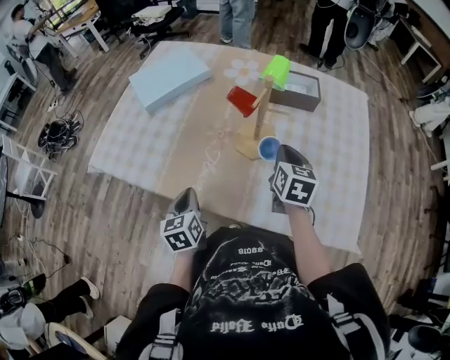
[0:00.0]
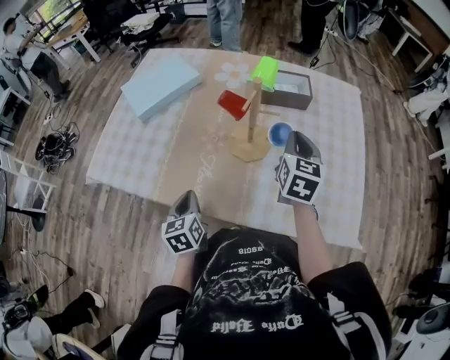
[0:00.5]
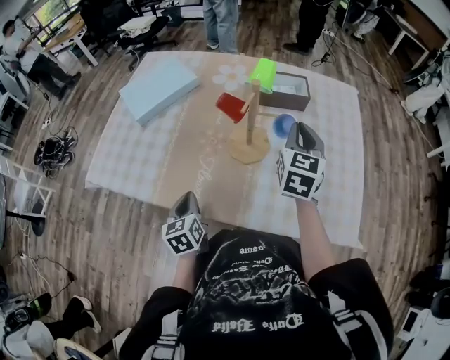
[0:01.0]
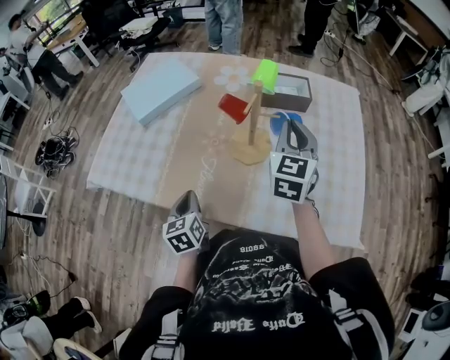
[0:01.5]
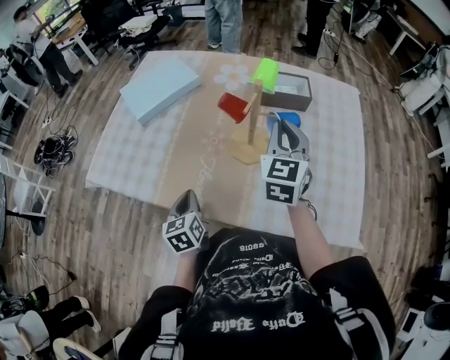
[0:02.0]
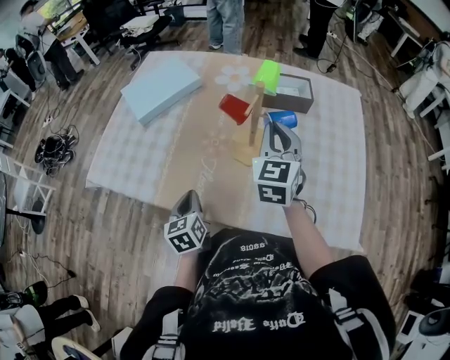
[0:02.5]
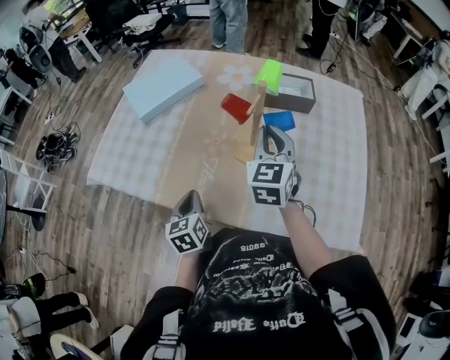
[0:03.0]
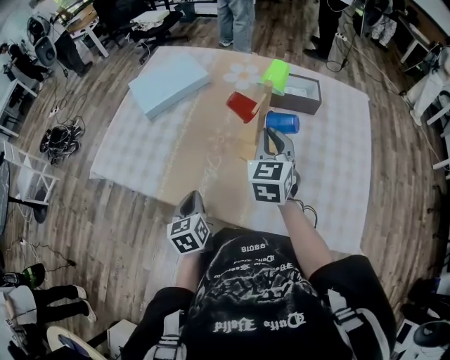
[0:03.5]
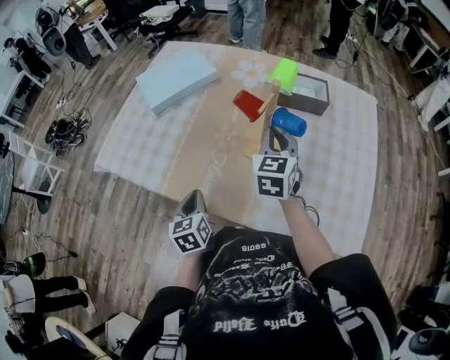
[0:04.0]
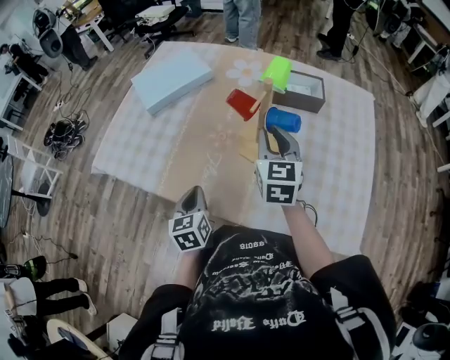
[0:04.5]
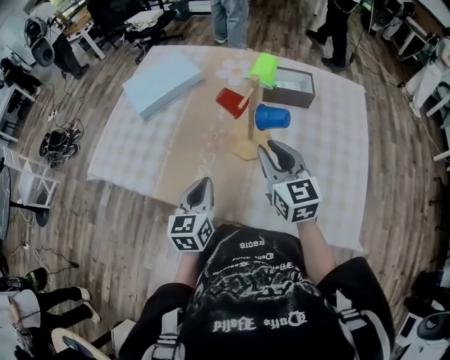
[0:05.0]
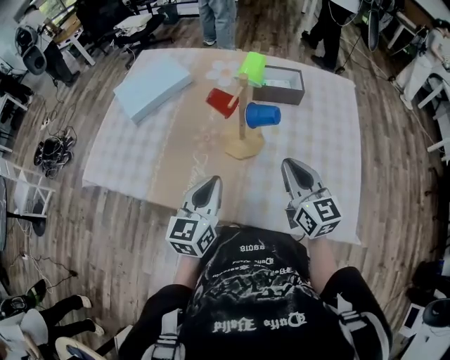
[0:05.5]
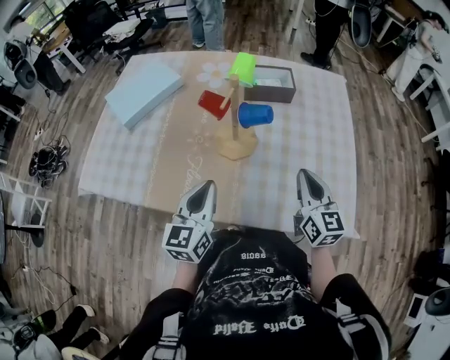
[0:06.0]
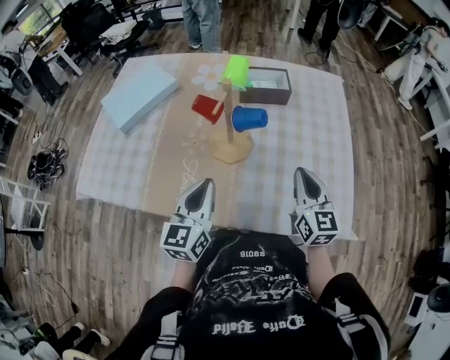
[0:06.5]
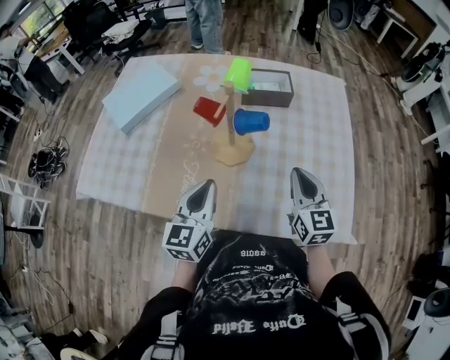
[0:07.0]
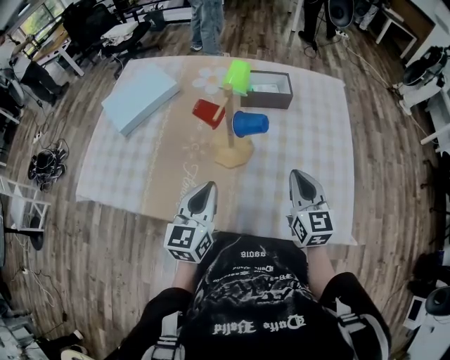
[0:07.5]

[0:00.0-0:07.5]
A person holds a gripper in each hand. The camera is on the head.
0:00.0 to 0:02.0: The right gripper goes roughly 10 cm upward, and swivels some 30 degrees.
0:02.0 to 0:04.0: The right gripper moves downward, approximately 5 cm.
0:04.0 to 0:05.5: The left gripper heads to the right and upward, covering roughly 15 cm, and turns by some 40 degrees; the right gripper moves backward and to the right, about 15 cm, and changes its angle by roughly 30 degrees.
0:05.5 to 0:07.5: The right gripper goes approximately 5 cm to the right.

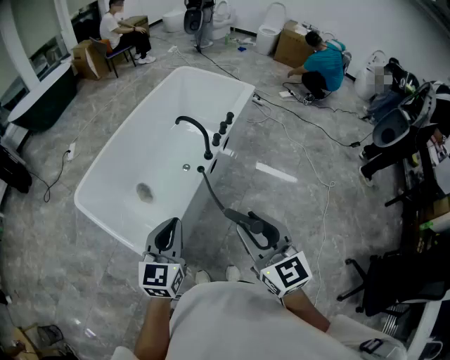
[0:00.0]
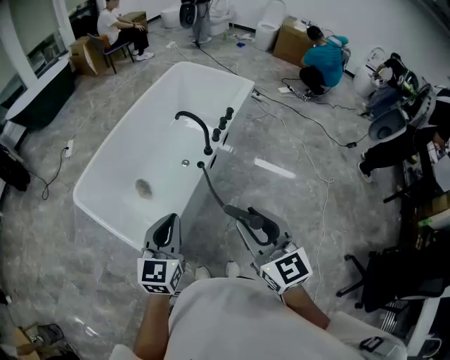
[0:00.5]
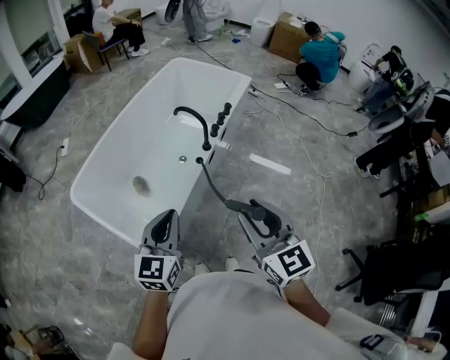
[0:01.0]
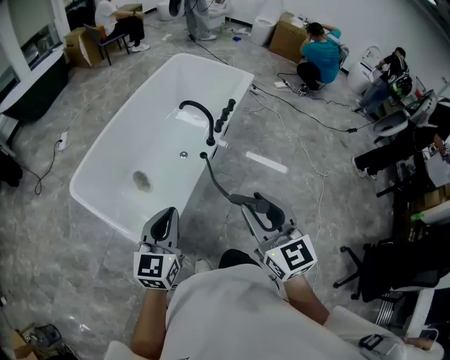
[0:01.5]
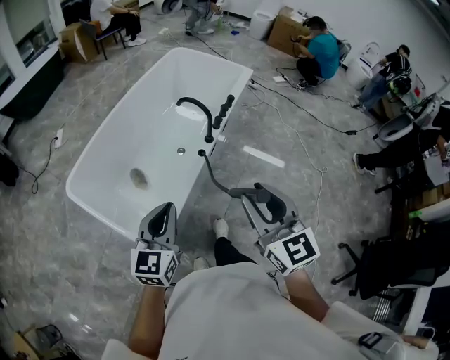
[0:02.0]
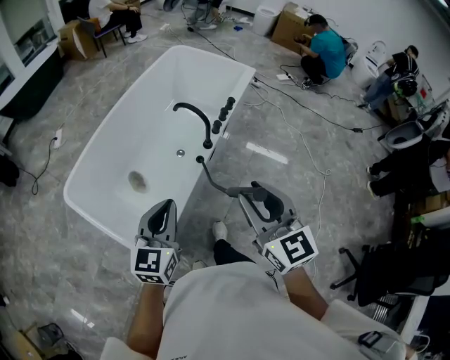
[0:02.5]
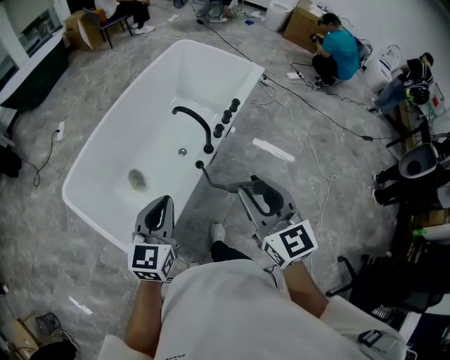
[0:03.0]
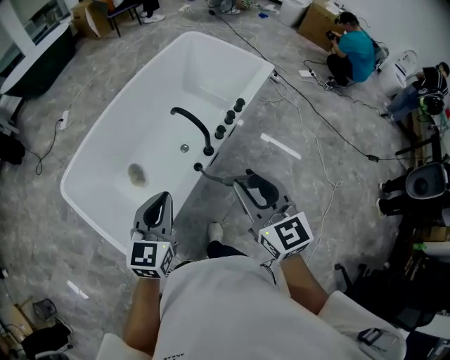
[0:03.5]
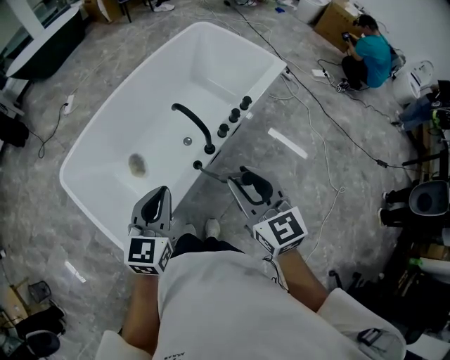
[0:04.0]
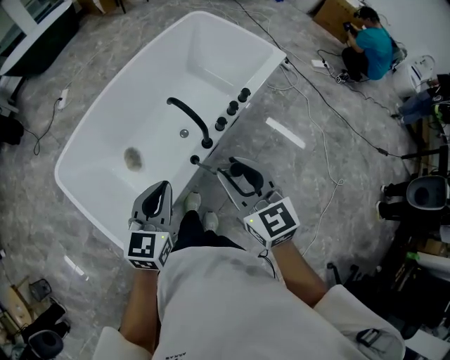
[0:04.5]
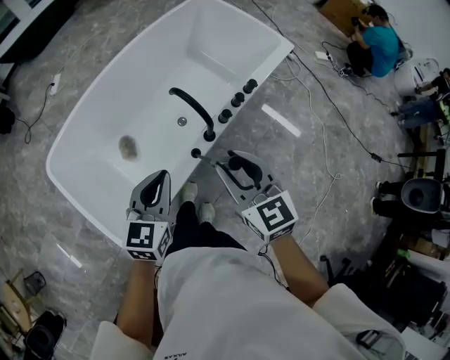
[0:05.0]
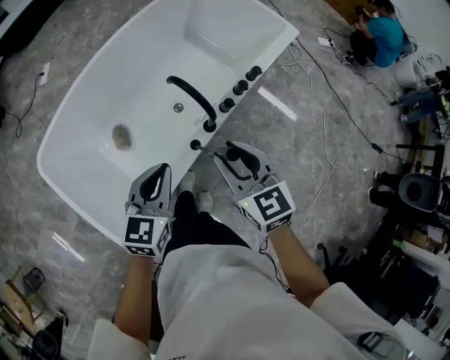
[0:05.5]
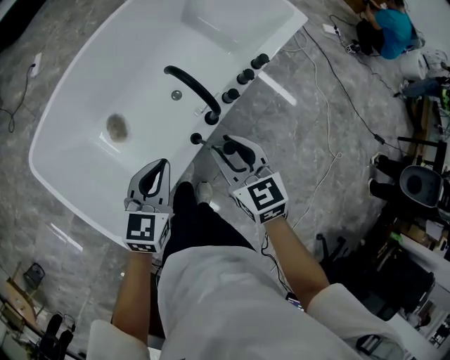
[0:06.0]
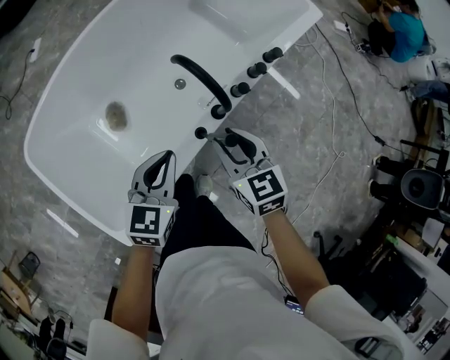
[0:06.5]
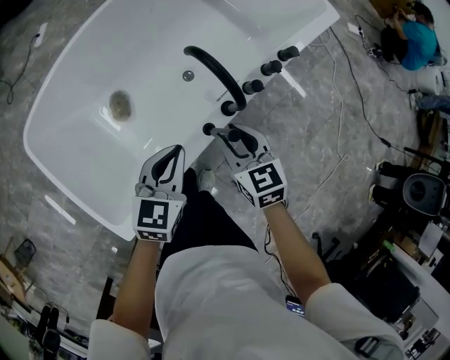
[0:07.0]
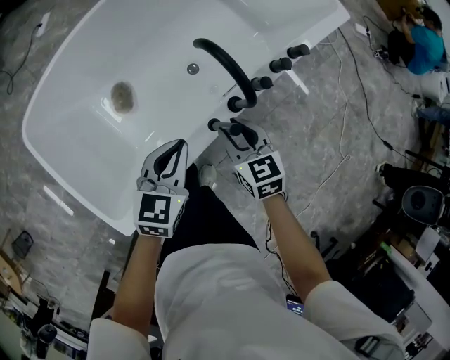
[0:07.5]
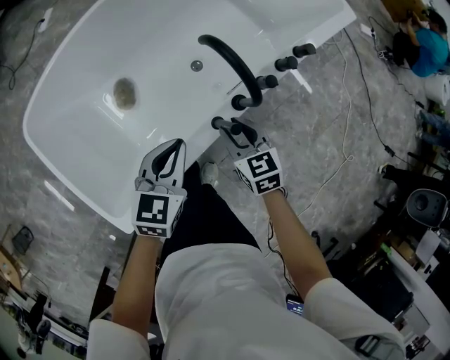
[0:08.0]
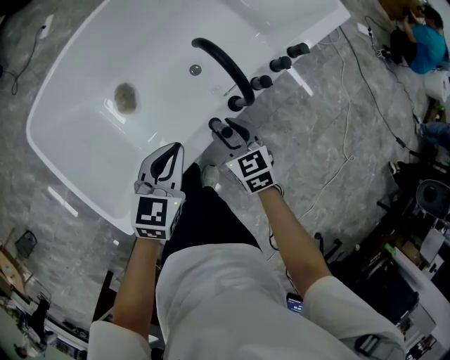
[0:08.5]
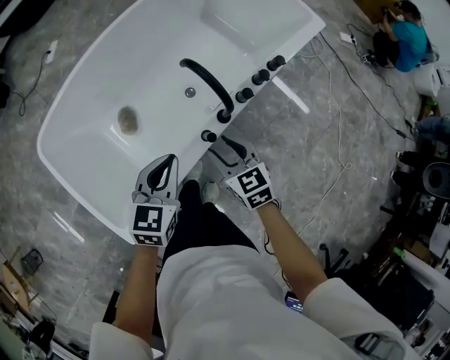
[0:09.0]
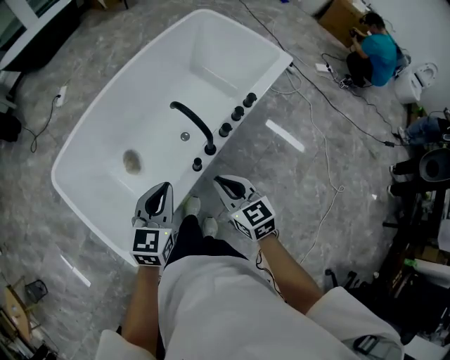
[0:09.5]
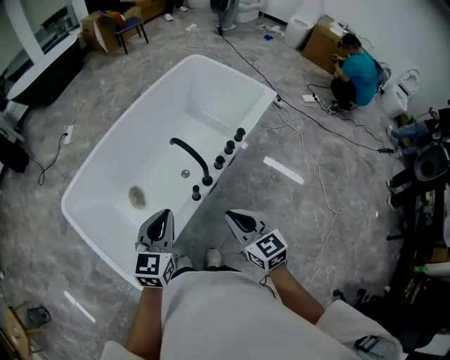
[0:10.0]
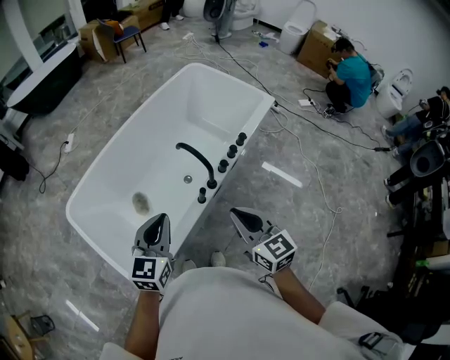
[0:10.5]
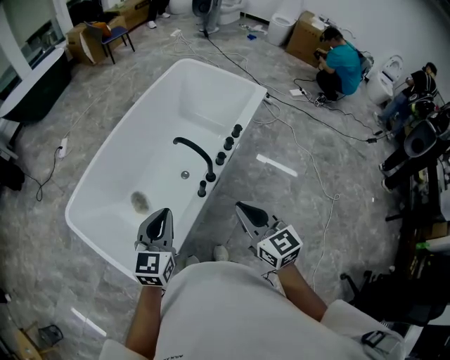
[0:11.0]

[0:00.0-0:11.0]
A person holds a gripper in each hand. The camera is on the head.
0:00.0 to 0:02.0: The right gripper ends up about 5 cm from where it was; the left gripper moves to the left, approximately 5 cm.
0:02.0 to 0:03.5: The grippers both shift forward and to the right by about 20 cm.
0:03.5 to 0:05.5: The right gripper shifts approximately 20 cm downward and forward; the left gripper is displaced forward and downward by about 15 cm.
0:05.5 to 0:07.5: The left gripper moves downward, roughly 15 cm. Meanwhile the right gripper is displaced downward by about 20 cm.
0:07.5 to 0:09.0: The right gripper changes place by some 5 cm. The left gripper goes roughly 5 cm upward.
0:09.0 to 0:11.0: The right gripper travels upward and backward by approximately 30 cm, turns by roughly 30 degrees, and closes, while the left gripper heads upward and backward, covering some 20 cm.

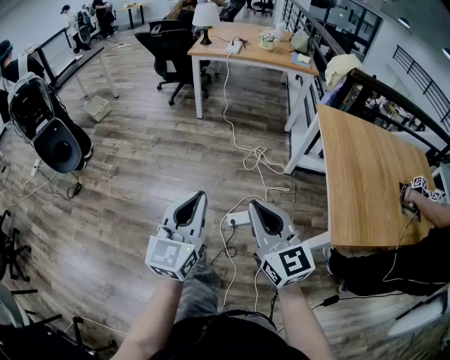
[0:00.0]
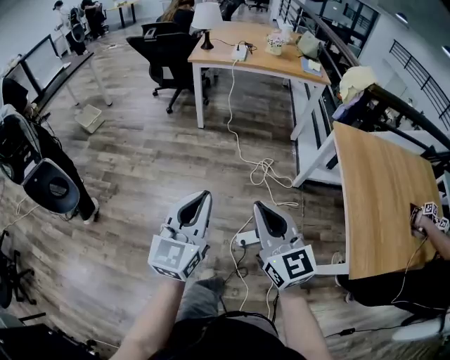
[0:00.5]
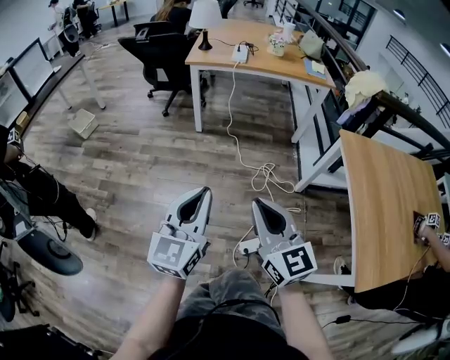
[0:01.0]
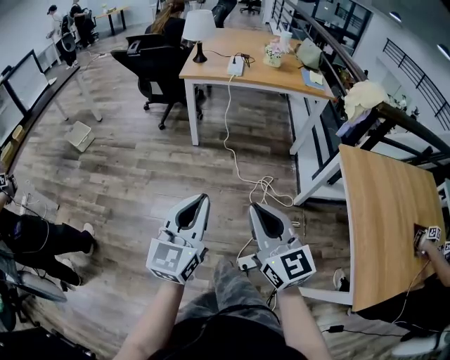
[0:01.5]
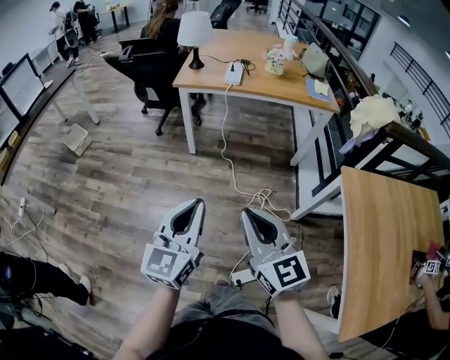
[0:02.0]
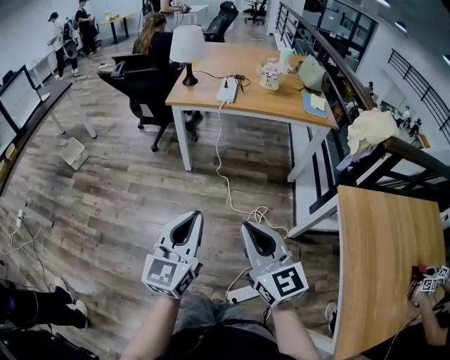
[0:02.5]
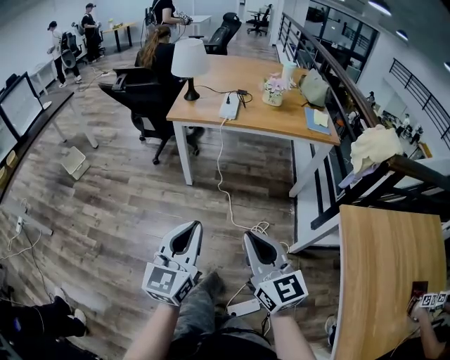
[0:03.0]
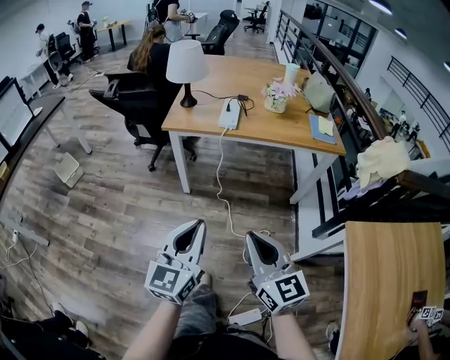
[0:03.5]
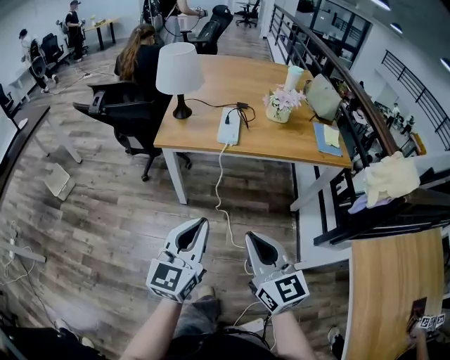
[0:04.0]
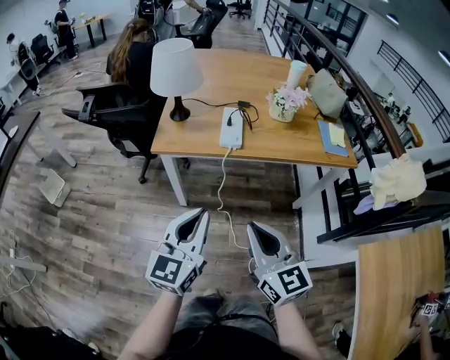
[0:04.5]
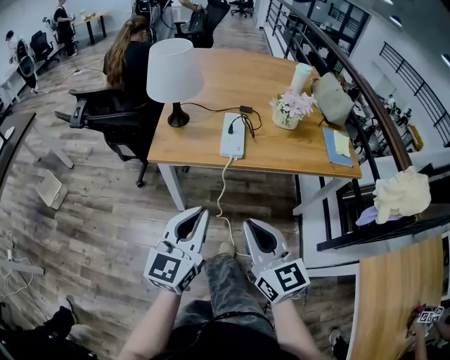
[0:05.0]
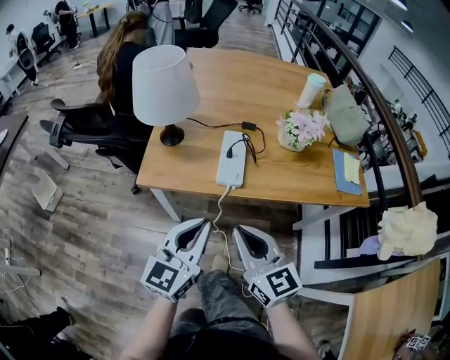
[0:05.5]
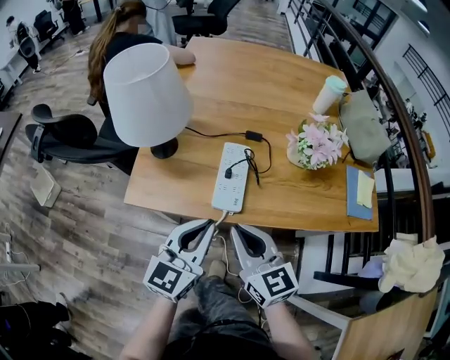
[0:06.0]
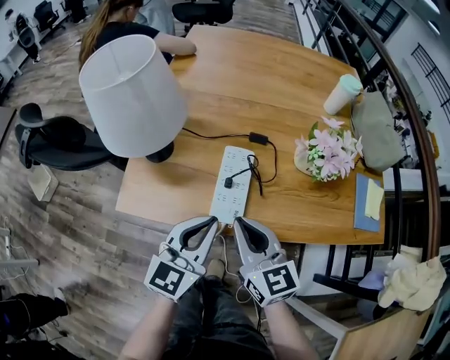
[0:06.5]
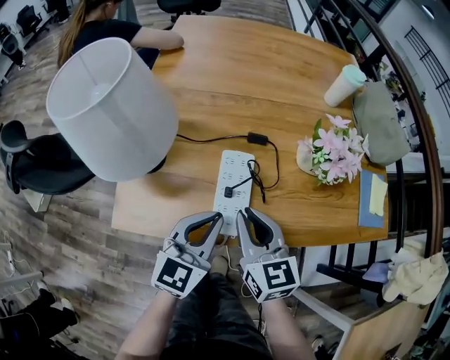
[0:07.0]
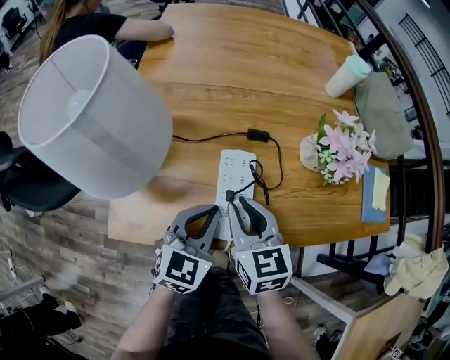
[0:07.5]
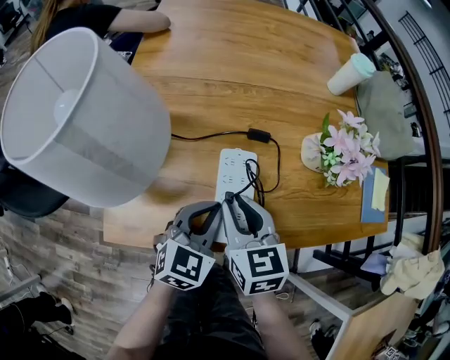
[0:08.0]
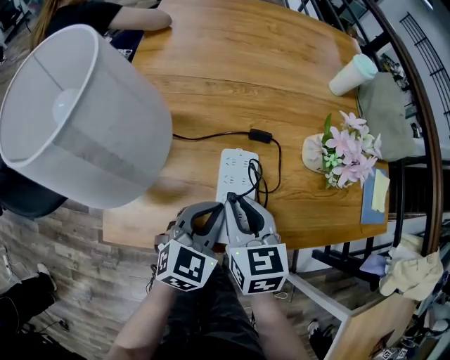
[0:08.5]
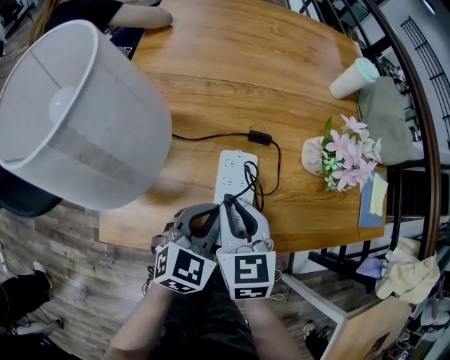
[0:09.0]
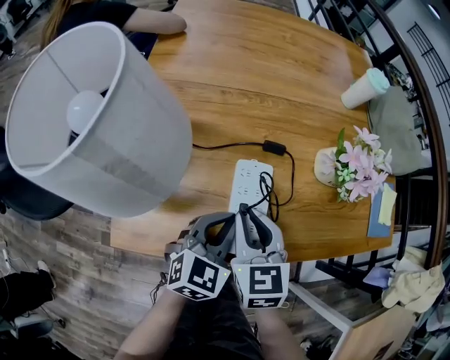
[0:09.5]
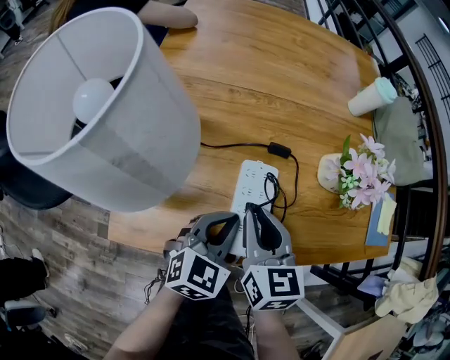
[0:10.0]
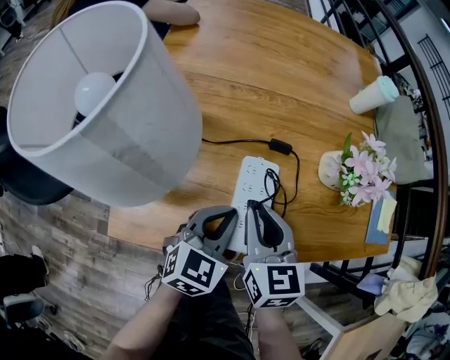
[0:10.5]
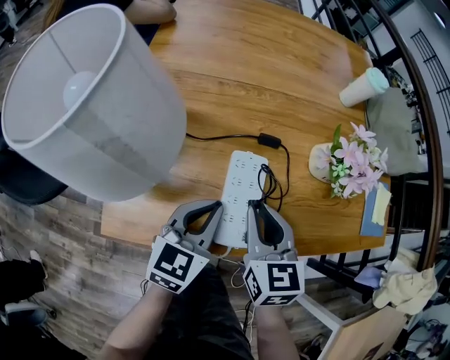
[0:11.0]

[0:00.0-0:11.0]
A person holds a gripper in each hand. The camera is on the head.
0:00.0 to 0:02.0: The pair of grippers is taken forward, some 40 cm.
0:02.0 to 0:03.5: Both grippers travel together forward, roughly 20 cm.
0:03.5 to 0:05.5: Both grippers travel together forward, some 40 cm.
0:05.5 to 0:07.5: The right gripper travels forward by some 25 cm, and rotates about 20 degrees; the left gripper shifts about 25 cm forward and downward, and changes its angle by roughly 30 degrees.
0:07.5 to 0:11.0: The grippers make only small movements.
